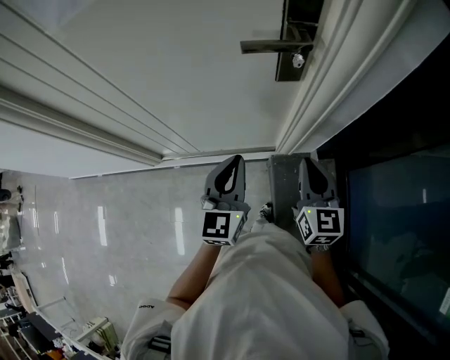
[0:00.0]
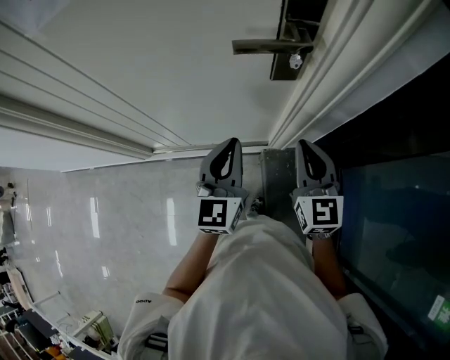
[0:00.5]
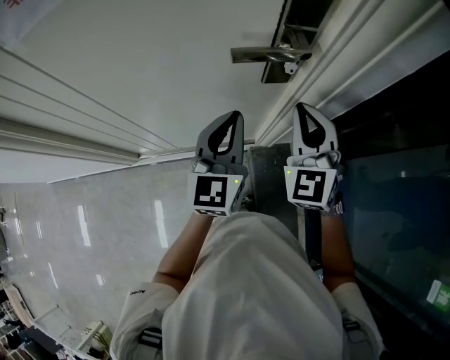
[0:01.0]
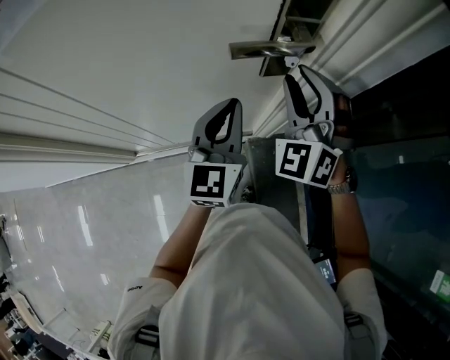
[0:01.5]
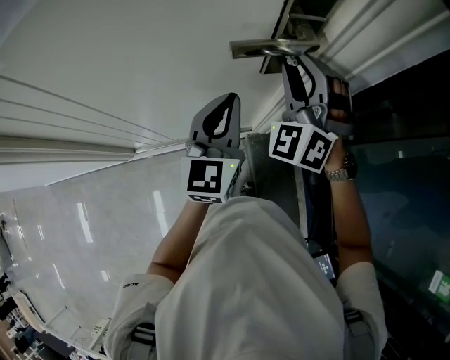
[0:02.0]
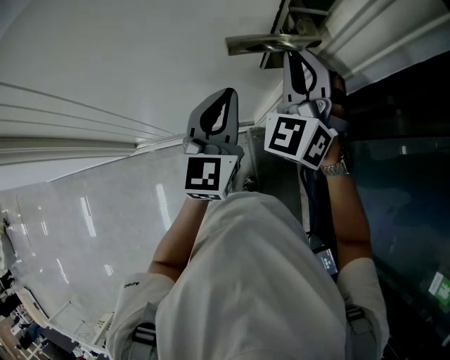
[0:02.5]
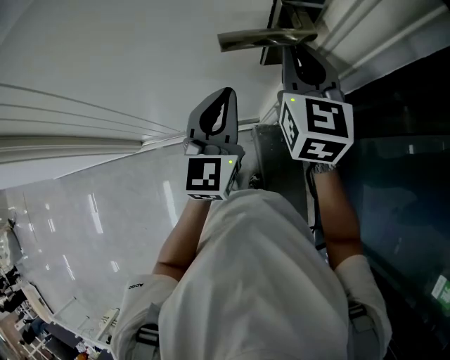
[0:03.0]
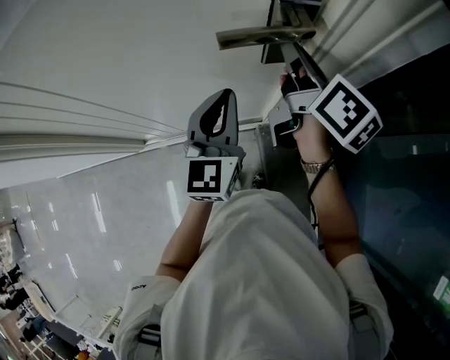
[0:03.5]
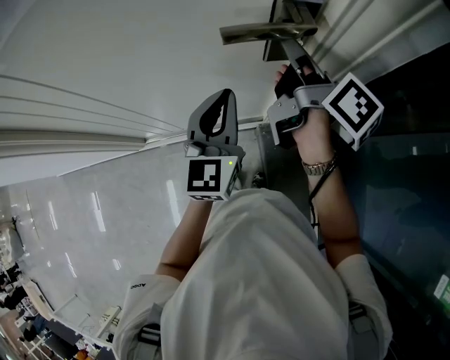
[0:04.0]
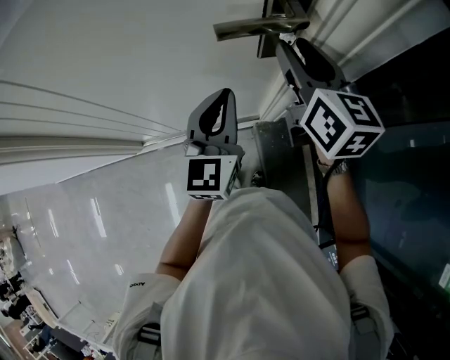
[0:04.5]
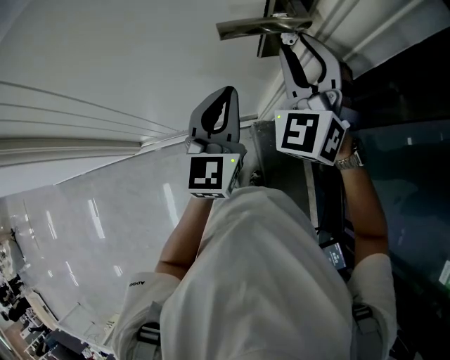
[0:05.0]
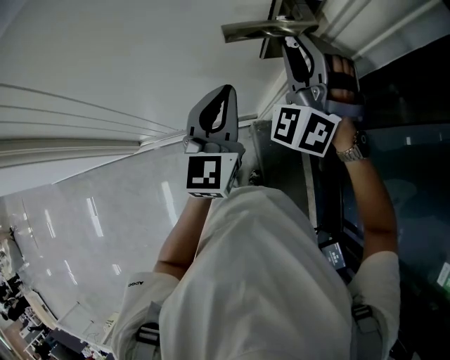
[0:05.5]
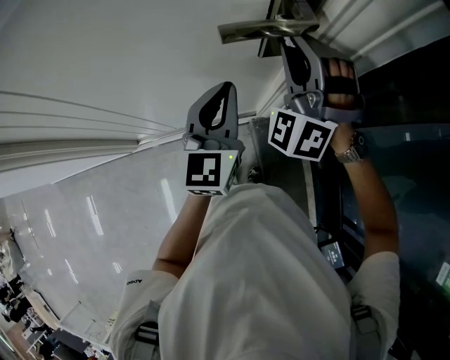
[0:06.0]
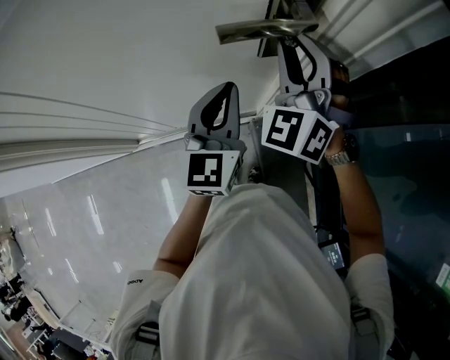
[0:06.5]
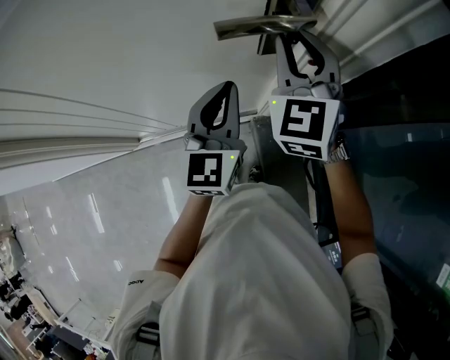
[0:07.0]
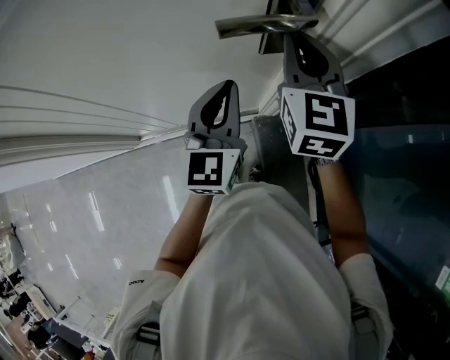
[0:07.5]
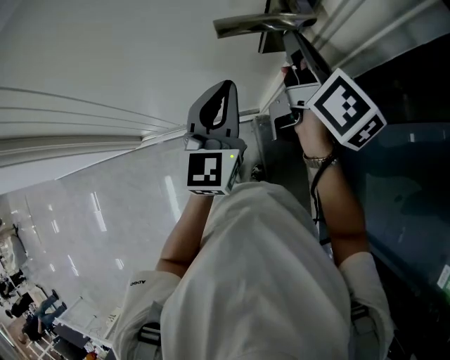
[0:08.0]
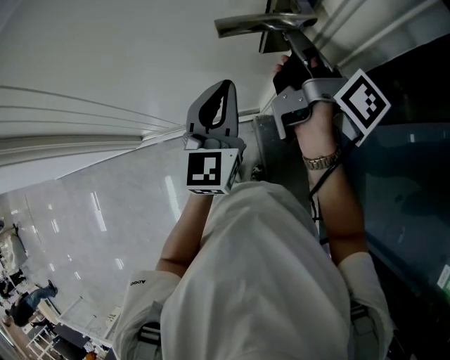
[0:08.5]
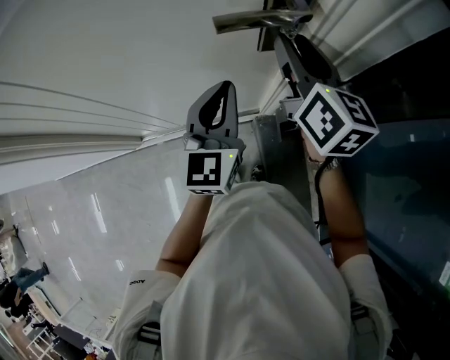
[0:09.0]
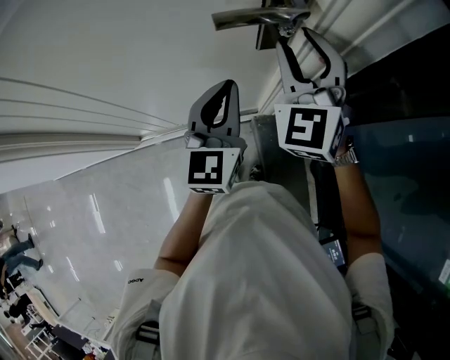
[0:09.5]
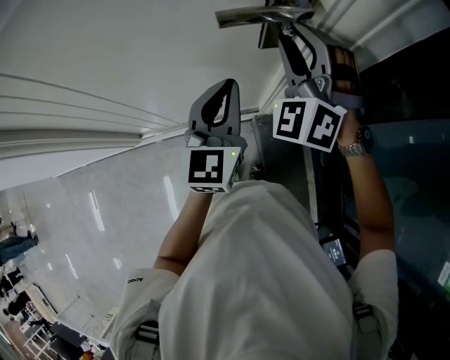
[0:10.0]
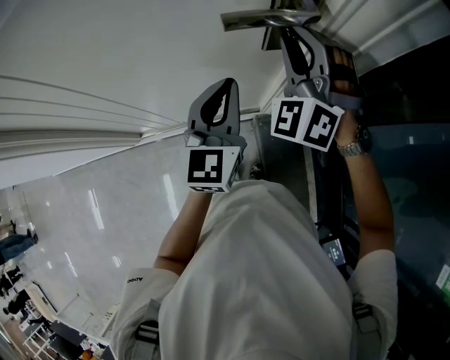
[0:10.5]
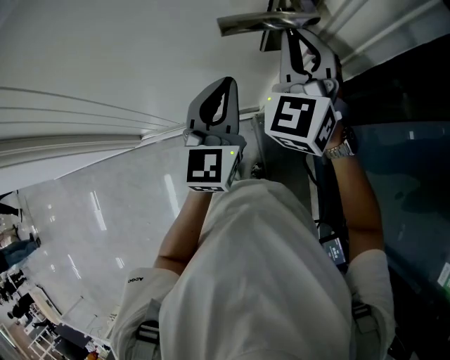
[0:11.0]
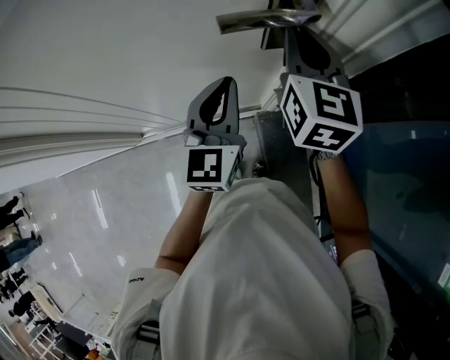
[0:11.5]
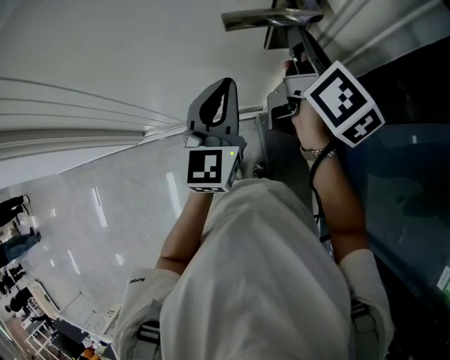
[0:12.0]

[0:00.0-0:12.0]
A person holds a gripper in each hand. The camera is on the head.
0:00.0 to 0:02.0: The left gripper moves forward, about 15 cm; the right gripper shifts approximately 20 cm forward and upward, twists some 70 degrees counterclockwise, seen from behind, and opens.
0:02.0 to 0:04.0: The right gripper rolls clockwise, seen from behind, by roughly 130 degrees.
0:04.0 to 0:06.0: The right gripper rolls counterclockwise, seen from behind, by approximately 140 degrees.
0:06.0 to 0:08.0: The right gripper twists about 120 degrees clockwise, seen from behind, and closes up.
0:08.0 to 0:10.0: The right gripper rolls counterclockwise, seen from behind, by roughly 110 degrees, and opens.
0:10.0 to 0:12.0: The right gripper rolls clockwise, seen from behind, by about 110 degrees, and closes up.

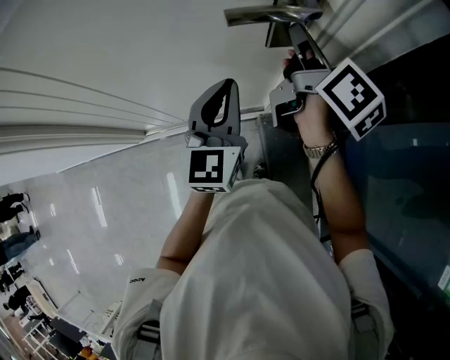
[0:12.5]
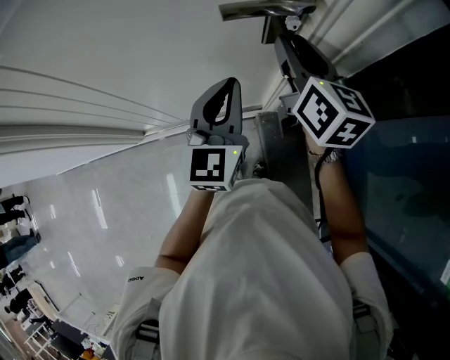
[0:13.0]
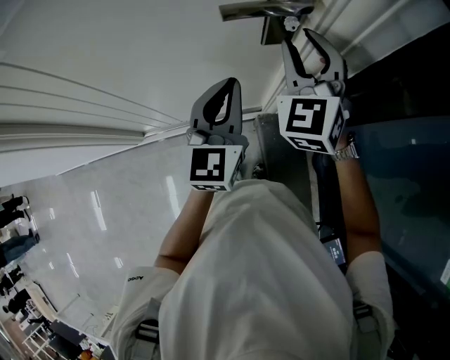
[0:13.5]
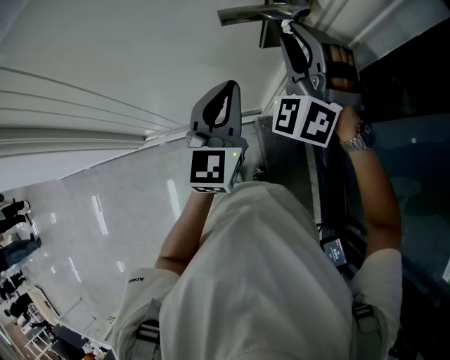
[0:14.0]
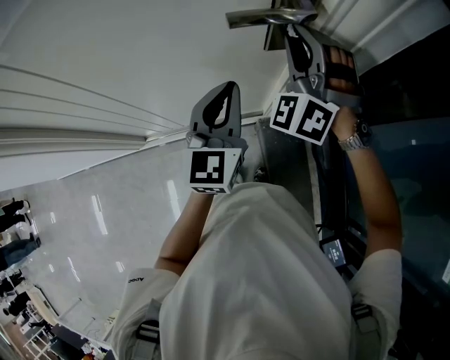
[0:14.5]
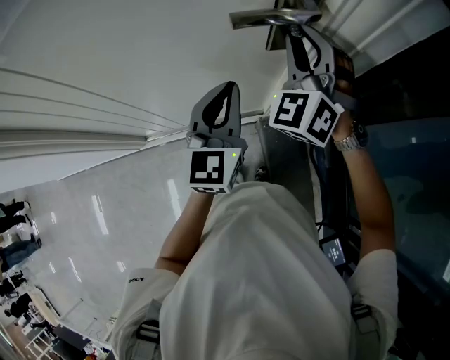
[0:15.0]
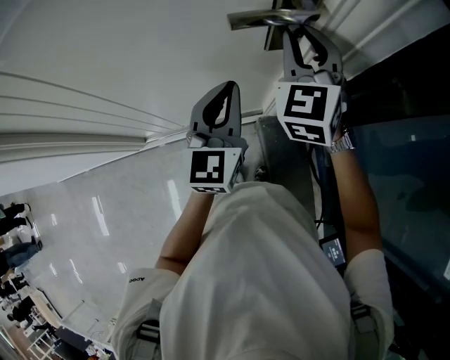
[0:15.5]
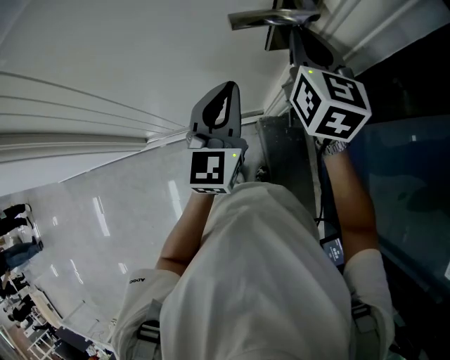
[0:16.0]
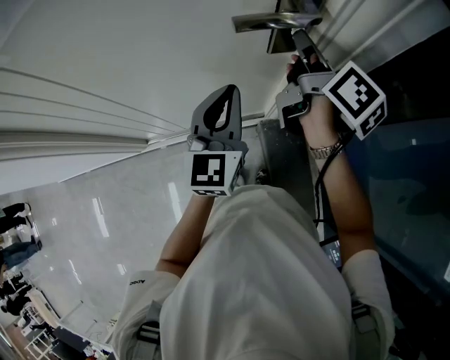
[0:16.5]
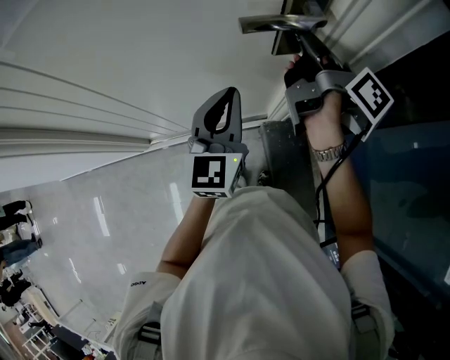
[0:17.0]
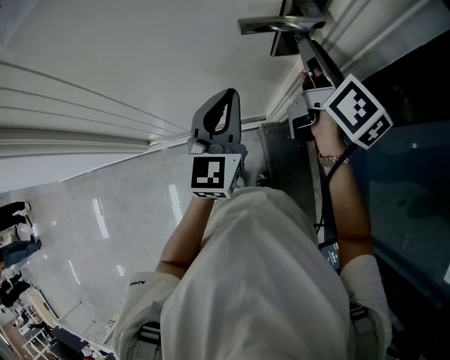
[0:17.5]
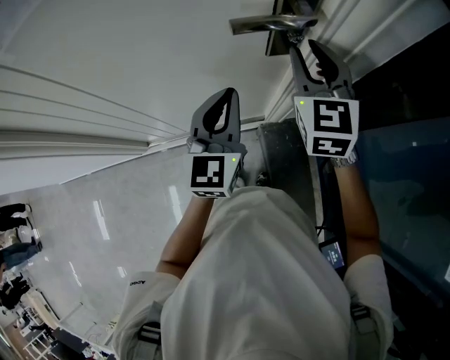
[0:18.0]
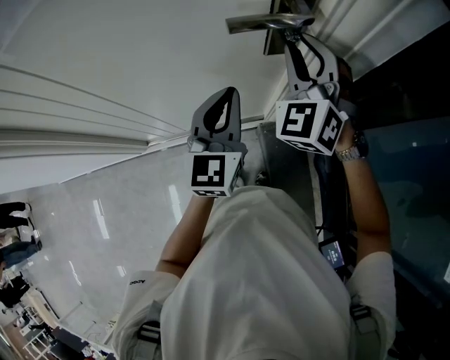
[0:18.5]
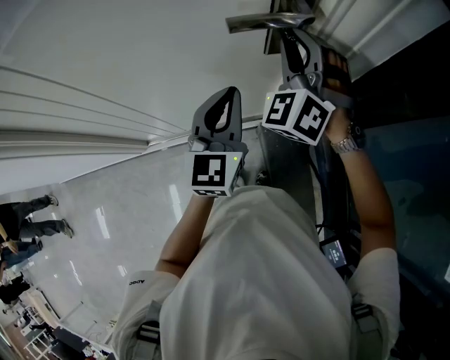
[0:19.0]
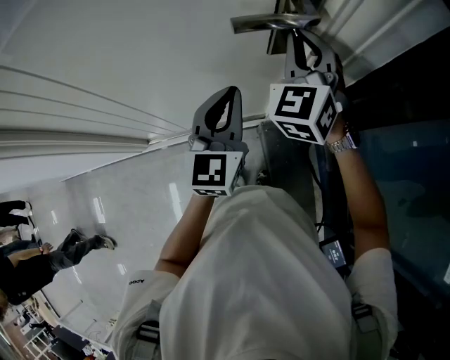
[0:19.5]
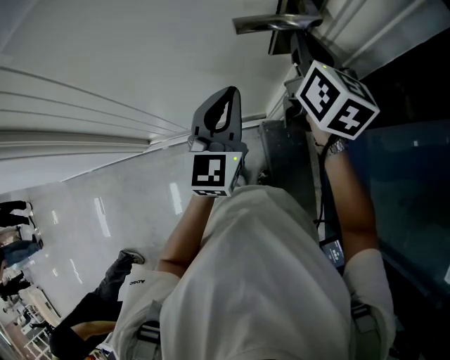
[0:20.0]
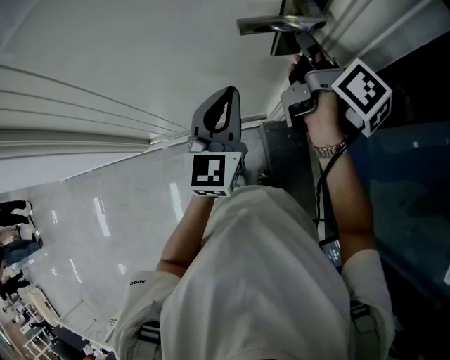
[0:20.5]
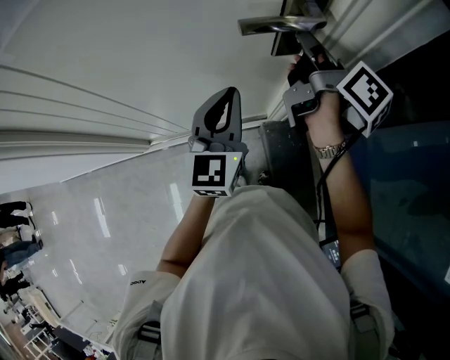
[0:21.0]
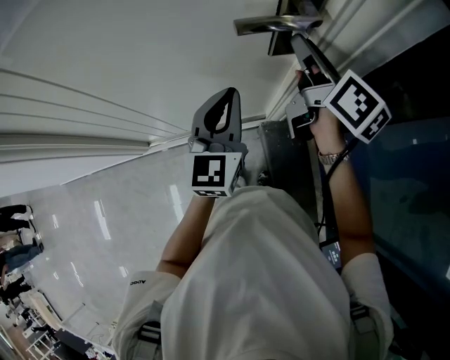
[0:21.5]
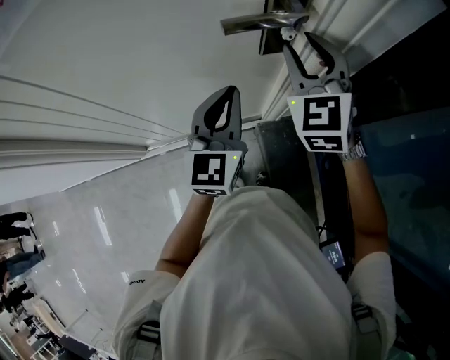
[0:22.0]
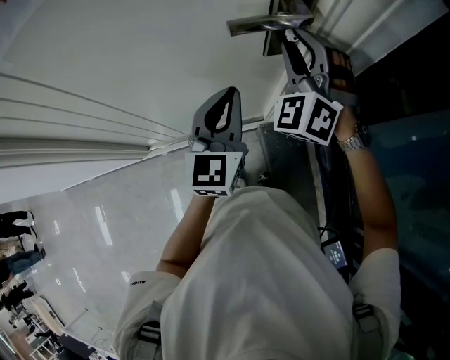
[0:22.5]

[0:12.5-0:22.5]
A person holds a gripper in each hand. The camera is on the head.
0:12.5 to 0:14.5: The right gripper twists some 120 degrees counterclockwise, seen from behind.
0:14.5 to 0:16.5: The right gripper rotates around the line of its fingers by about 130 degrees, clockwise from behind.
0:16.5 to 0:18.5: The right gripper rotates around the line of its fingers by roughly 100 degrees, counterclockwise from behind, and opens up.
0:18.5 to 0:20.5: The right gripper rotates around the line of its fingers by approximately 110 degrees, clockwise from behind.
0:20.5 to 0:22.5: The right gripper twists about 120 degrees counterclockwise, seen from behind, and opens.

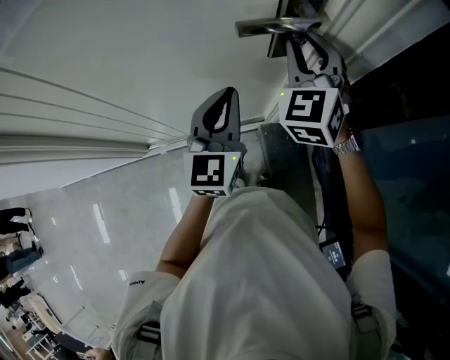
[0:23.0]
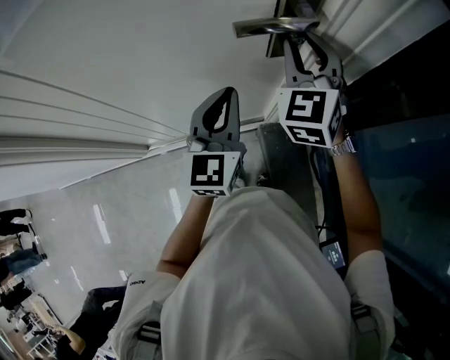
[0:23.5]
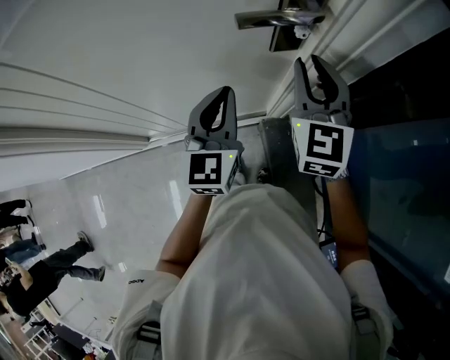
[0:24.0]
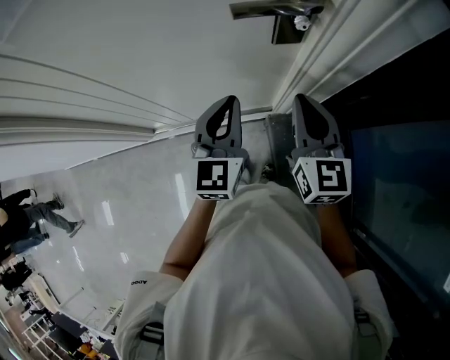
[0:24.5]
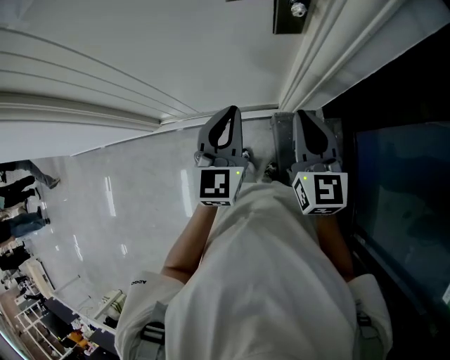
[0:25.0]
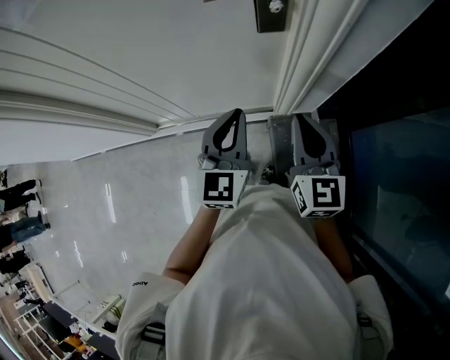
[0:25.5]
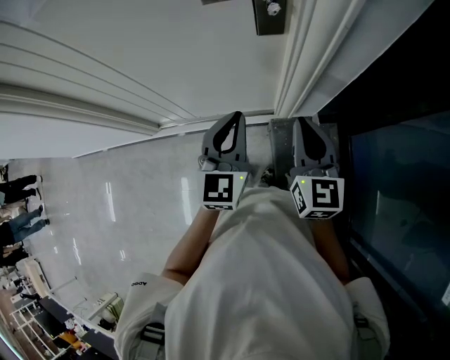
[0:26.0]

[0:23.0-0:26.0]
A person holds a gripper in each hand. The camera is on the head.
0:23.0 to 0:24.5: The left gripper ends up approximately 5 cm from where it was. Meanwhile the right gripper is displaced backward and downward by about 15 cm, turns by about 40 degrees, and closes its fingers.
0:24.5 to 0:26.0: The two grippers go about 10 cm backward.

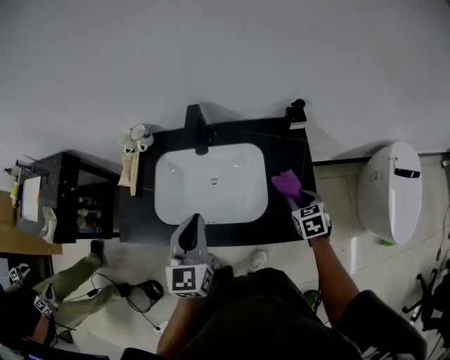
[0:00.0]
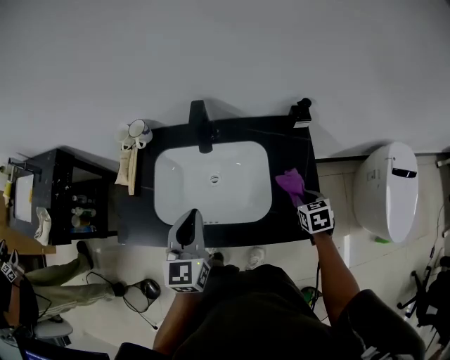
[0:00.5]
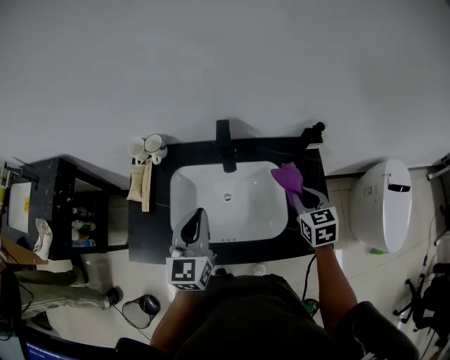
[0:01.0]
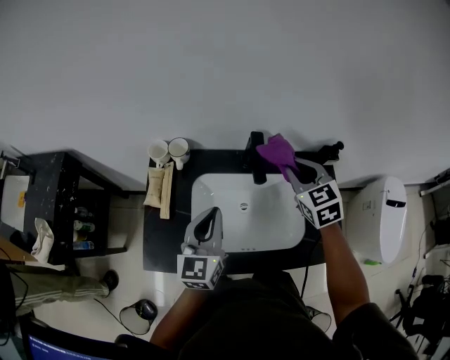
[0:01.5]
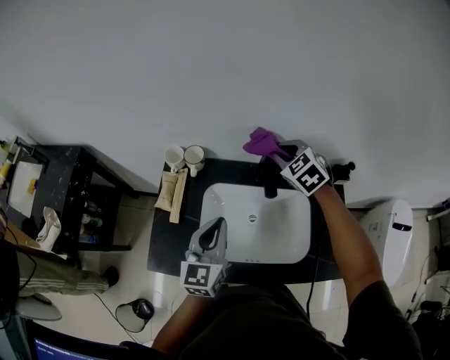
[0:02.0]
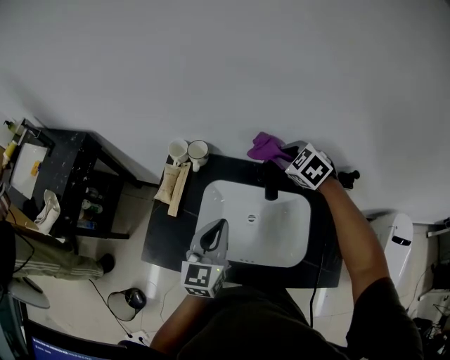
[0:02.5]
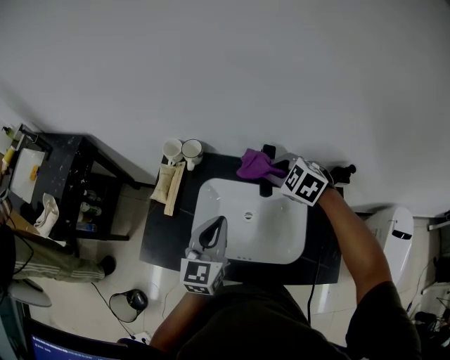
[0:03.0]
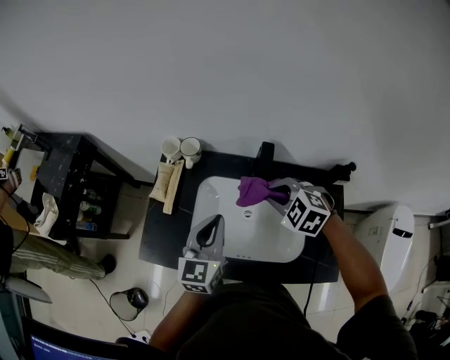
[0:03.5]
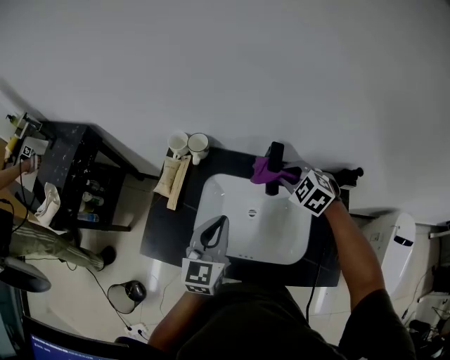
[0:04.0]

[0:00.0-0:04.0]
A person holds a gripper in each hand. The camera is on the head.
0:00.0 to 0:02.0: The right gripper goes about 50 cm to the left, forward and upward, and turns by approximately 40 degrees. The left gripper travels to the left and forward by approximately 20 cm.
0:02.0 to 0:04.0: The right gripper shifts some 10 cm downward and backward.
